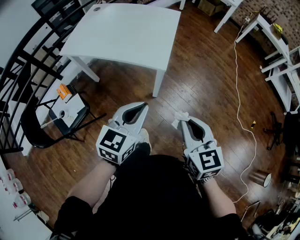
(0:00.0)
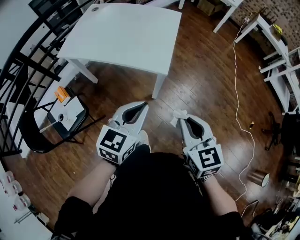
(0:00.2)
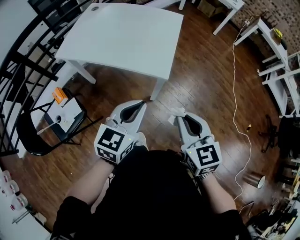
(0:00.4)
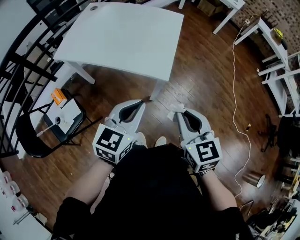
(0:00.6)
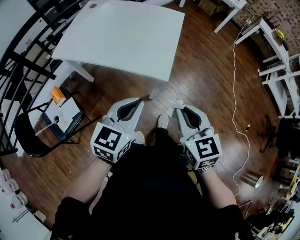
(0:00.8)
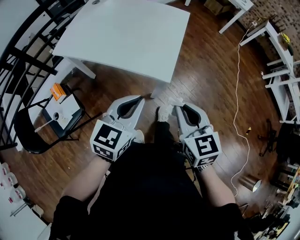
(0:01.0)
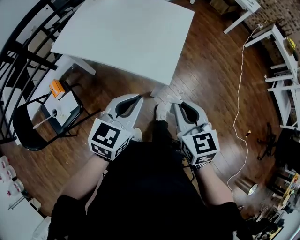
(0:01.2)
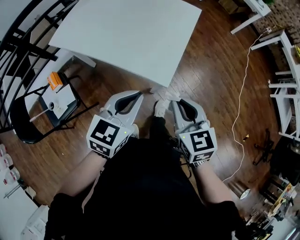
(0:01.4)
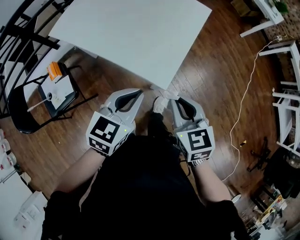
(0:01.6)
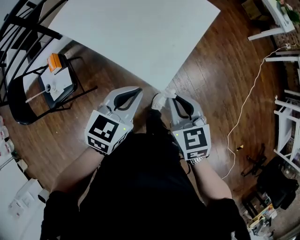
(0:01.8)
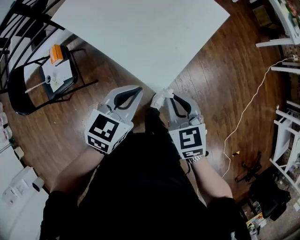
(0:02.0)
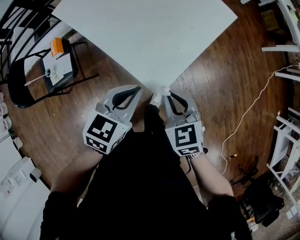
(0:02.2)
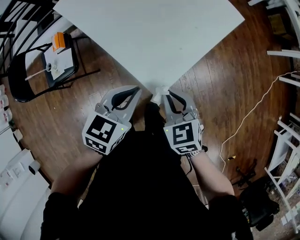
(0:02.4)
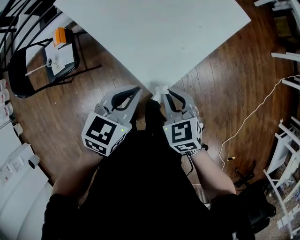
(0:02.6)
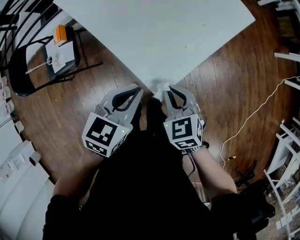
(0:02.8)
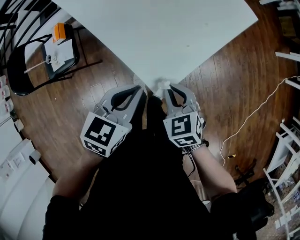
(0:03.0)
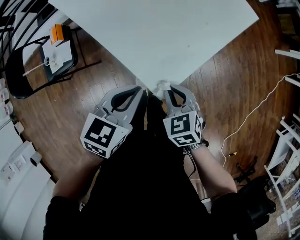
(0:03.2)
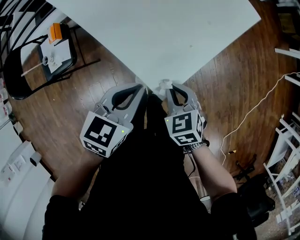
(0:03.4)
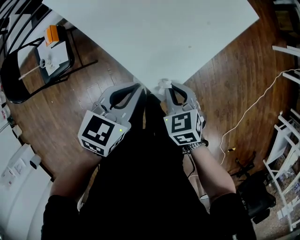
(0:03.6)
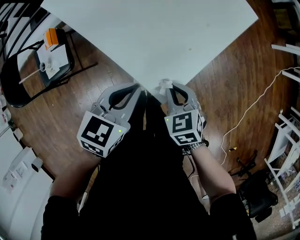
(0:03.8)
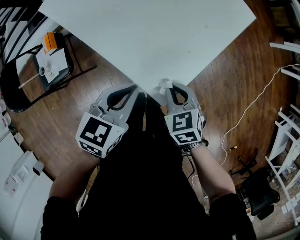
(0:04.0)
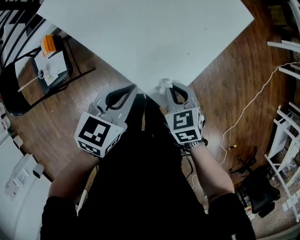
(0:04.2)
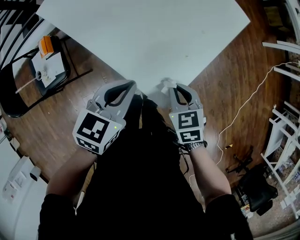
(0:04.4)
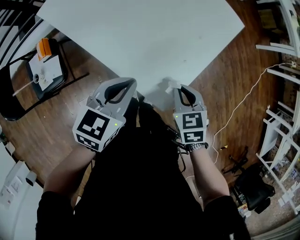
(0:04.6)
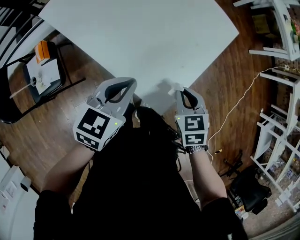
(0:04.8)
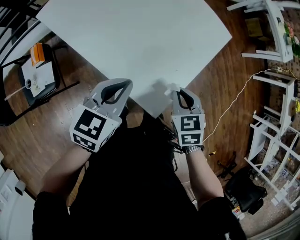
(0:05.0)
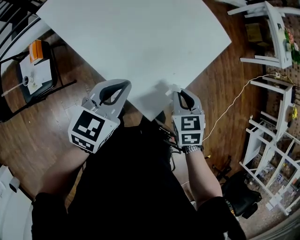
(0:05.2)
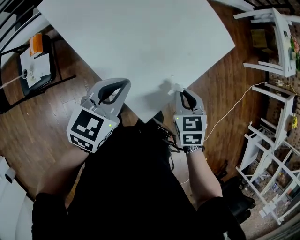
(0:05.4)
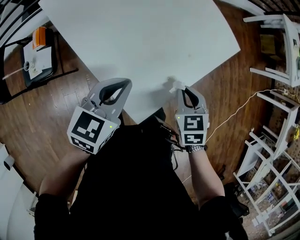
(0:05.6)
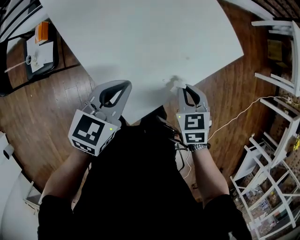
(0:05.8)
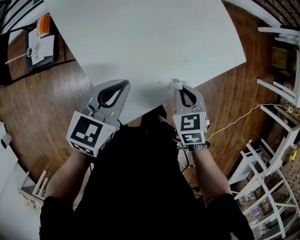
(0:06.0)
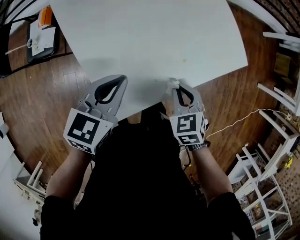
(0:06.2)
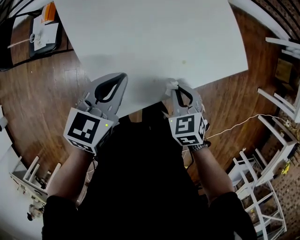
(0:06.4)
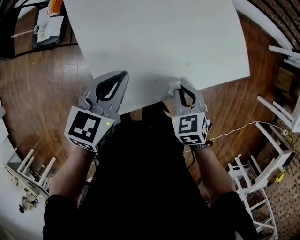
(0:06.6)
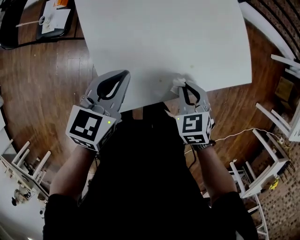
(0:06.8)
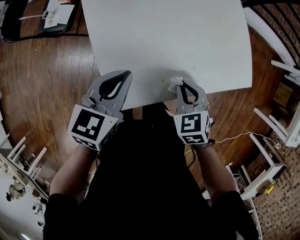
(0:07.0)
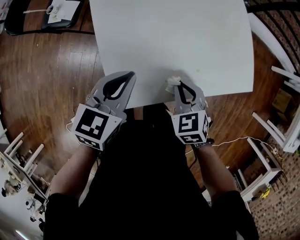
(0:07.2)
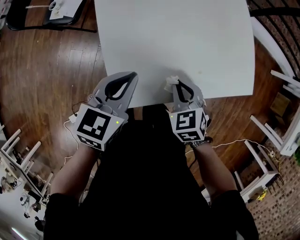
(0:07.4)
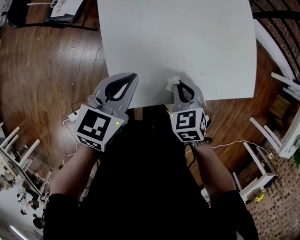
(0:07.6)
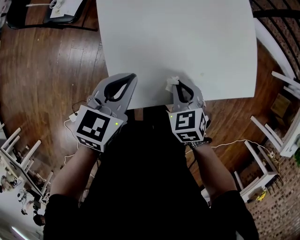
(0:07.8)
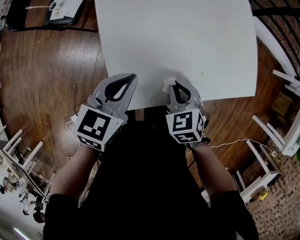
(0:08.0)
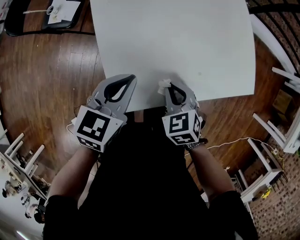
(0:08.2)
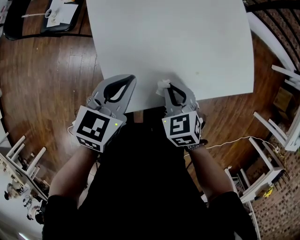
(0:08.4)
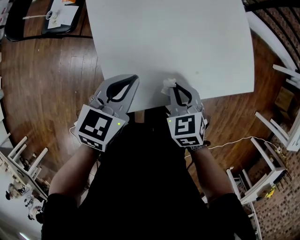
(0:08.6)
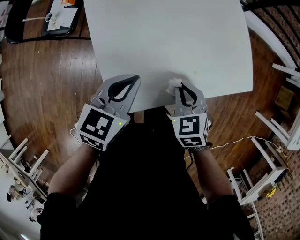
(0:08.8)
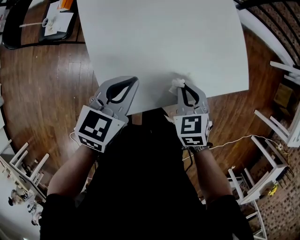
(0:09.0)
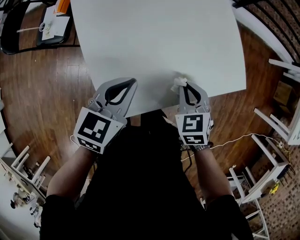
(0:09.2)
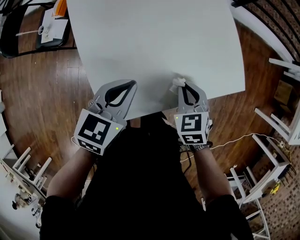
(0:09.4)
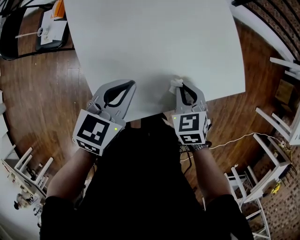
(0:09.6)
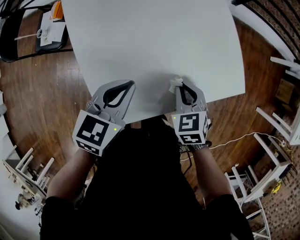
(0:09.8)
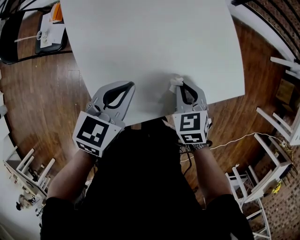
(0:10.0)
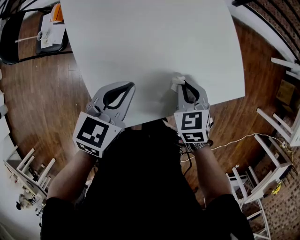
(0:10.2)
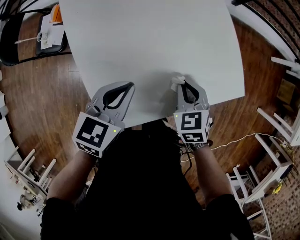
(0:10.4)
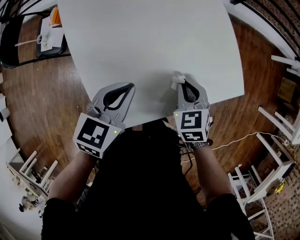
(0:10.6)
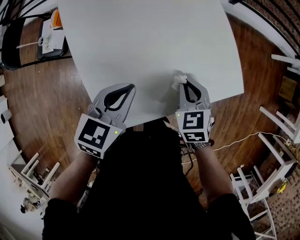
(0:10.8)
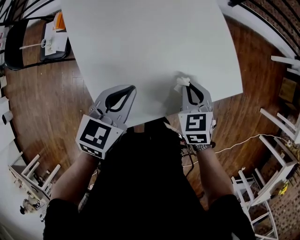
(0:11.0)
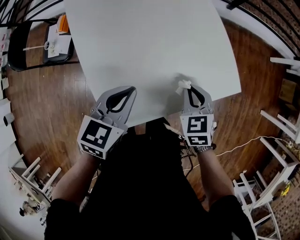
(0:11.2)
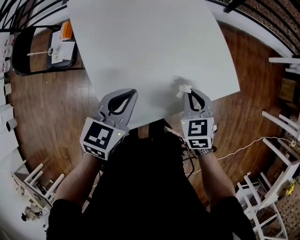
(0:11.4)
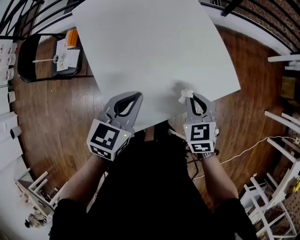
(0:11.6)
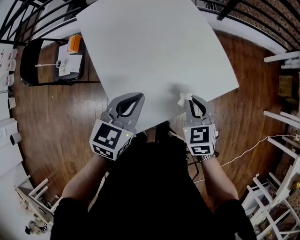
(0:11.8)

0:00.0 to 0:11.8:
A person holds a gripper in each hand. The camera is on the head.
0:00.0 to 0:01.4: The two grippers go roughly 20 cm forward.
0:01.4 to 0:03.0: The left gripper moves downward, roughly 10 cm, and swivels approximately 30 degrees; the right gripper moves downward, roughly 15 cm, and turns by approximately 40 degrees.
0:03.0 to 0:04.4: The left gripper shifts some 5 cm forward.
0:04.4 to 0:06.0: The left gripper is displaced forward and to the right by some 10 cm. The right gripper travels forward and to the right by approximately 15 cm, and swivels approximately 20 degrees.
0:06.0 to 0:07.4: The left gripper turns by some 20 degrees. Meanwhile the right gripper ends up approximately 5 cm from where it was, and turns by about 30 degrees.
0:07.4 to 0:08.8: The grippers stay close to where they were, moving slightly.
0:08.8 to 0:10.4: The left gripper shifts roughly 5 cm forward, while the right gripper goes roughly 10 cm forward and to the right.
0:10.4 to 0:11.8: The right gripper is displaced upward and backward by some 10 cm. Meanwhile the left gripper moves upward, approximately 10 cm.

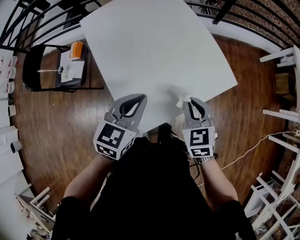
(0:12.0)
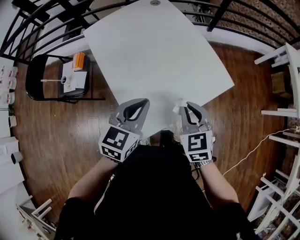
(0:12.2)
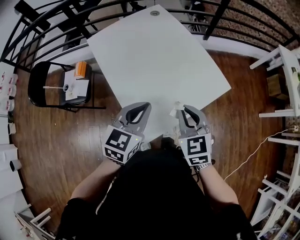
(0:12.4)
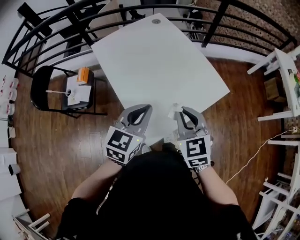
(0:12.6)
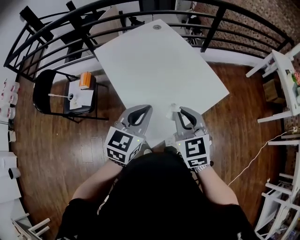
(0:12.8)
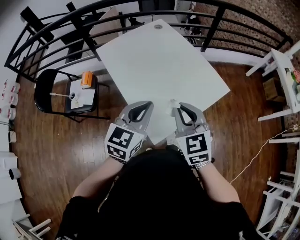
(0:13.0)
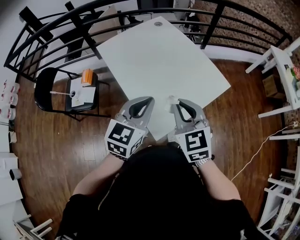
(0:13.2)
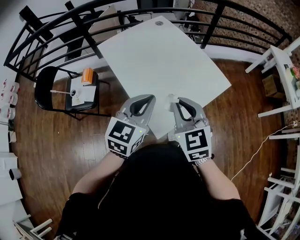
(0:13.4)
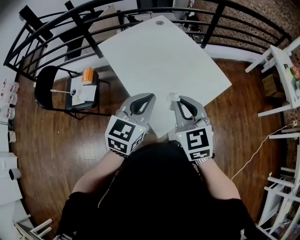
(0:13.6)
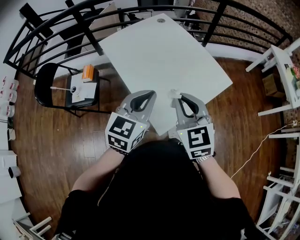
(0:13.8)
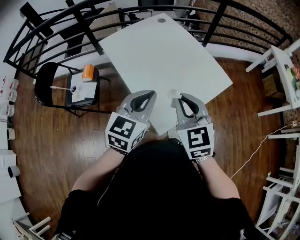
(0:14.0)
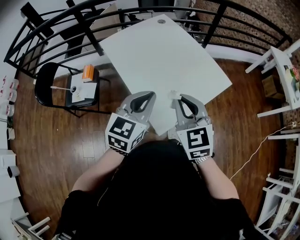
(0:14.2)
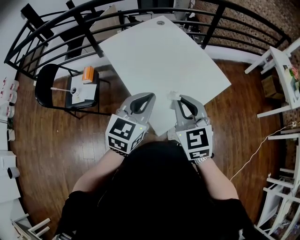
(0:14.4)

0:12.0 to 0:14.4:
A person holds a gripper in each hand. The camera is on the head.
0:12.0 to 0:13.2: The right gripper is displaced upward, to the left and backward by roughly 20 cm, while the left gripper travels upward, backward and to the left by roughly 15 cm.
0:13.2 to 0:14.4: The grippers move only a little.

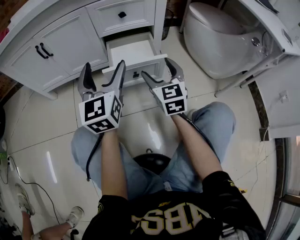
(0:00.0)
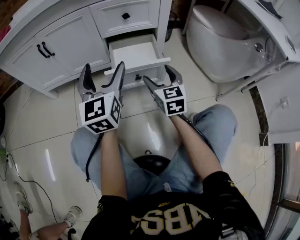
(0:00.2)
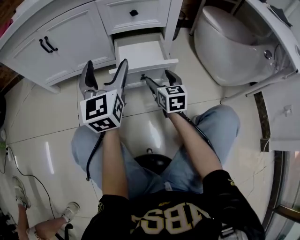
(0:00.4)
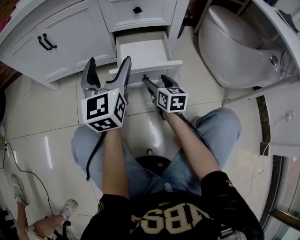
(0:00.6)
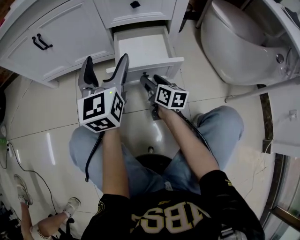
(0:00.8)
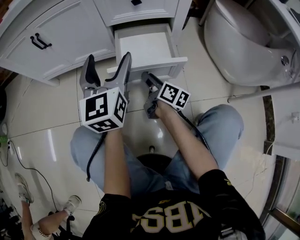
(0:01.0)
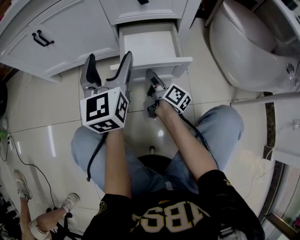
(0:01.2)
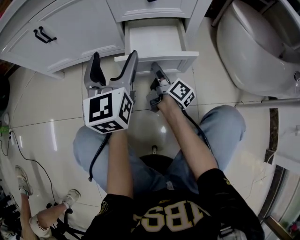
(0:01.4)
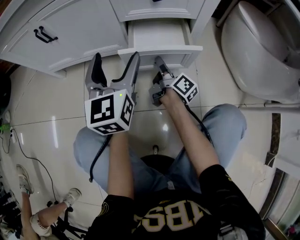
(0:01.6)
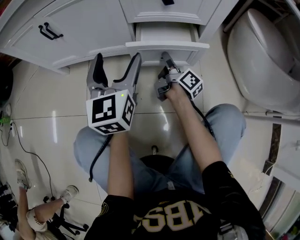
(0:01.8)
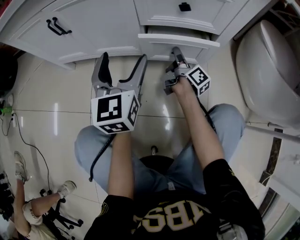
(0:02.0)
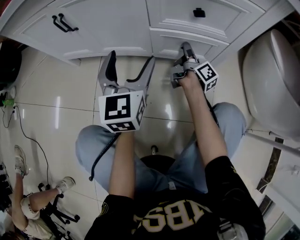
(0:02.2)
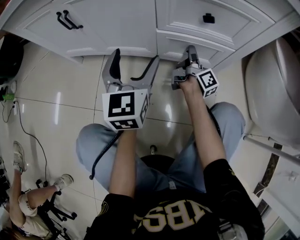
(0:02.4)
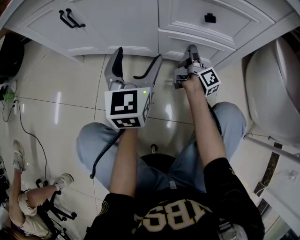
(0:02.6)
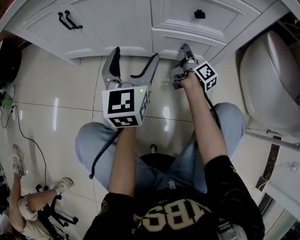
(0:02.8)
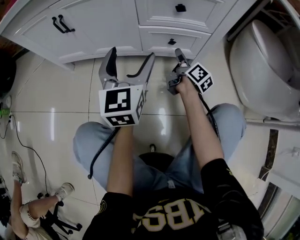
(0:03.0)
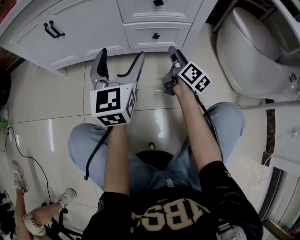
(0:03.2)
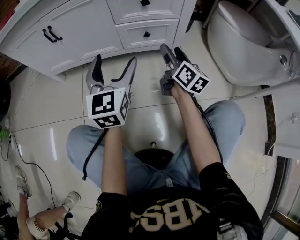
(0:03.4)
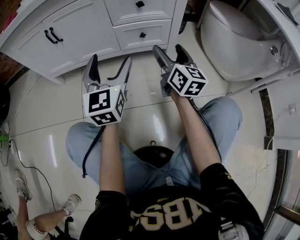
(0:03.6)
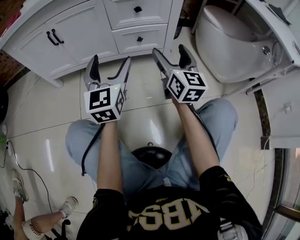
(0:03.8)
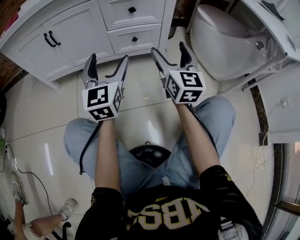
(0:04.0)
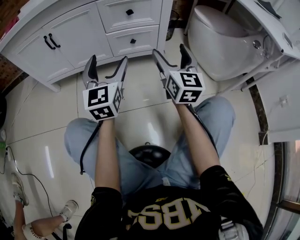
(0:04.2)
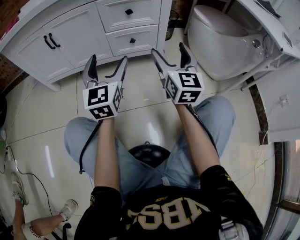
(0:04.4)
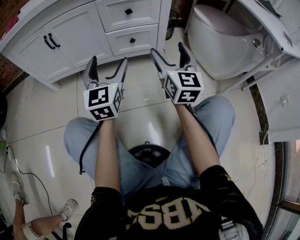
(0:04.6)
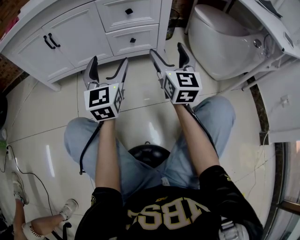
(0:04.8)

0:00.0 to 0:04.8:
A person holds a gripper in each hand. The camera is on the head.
0:00.0 to 0:01.6: The right gripper goes approximately 25 cm downward and forward, twists approximately 80 degrees clockwise, seen from behind, and closes up, while the left gripper shifts some 15 cm forward and downward.
0:01.6 to 0:03.2: The left gripper moves some 5 cm forward and comes back. Meanwhile the right gripper shifts roughly 10 cm upward and to the right, moves some 15 cm forward and comes back, and changes its angle by about 20 degrees.
0:03.2 to 0:04.8: The left gripper travels backward by roughly 10 cm. The right gripper travels backward and upward by some 25 cm, twists some 50 degrees counterclockwise, seen from behind, and opens up.

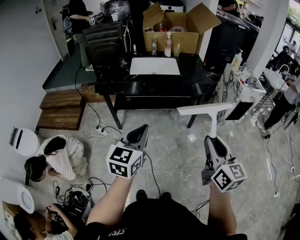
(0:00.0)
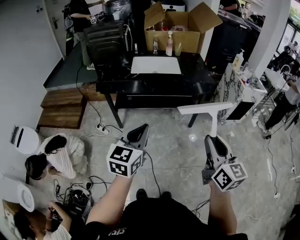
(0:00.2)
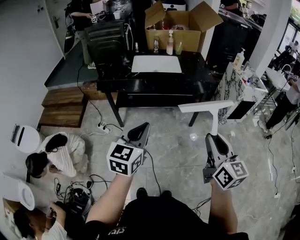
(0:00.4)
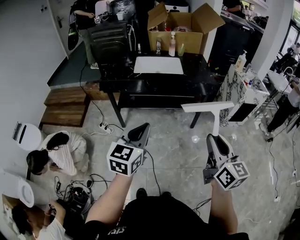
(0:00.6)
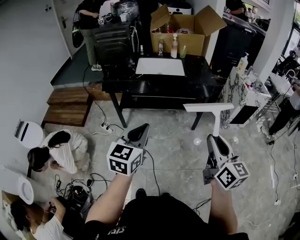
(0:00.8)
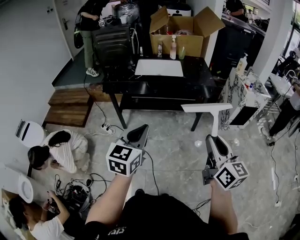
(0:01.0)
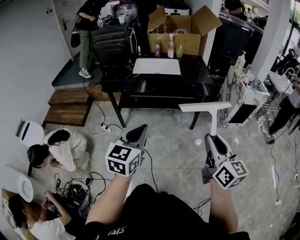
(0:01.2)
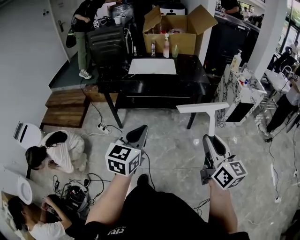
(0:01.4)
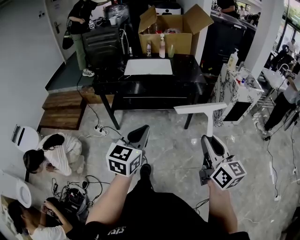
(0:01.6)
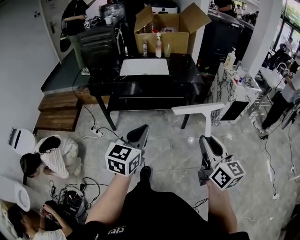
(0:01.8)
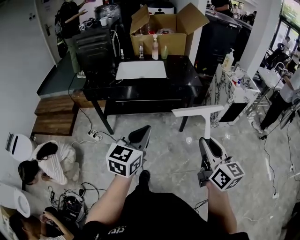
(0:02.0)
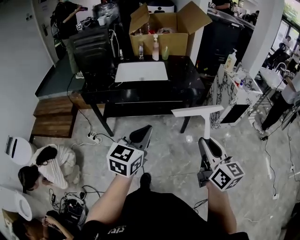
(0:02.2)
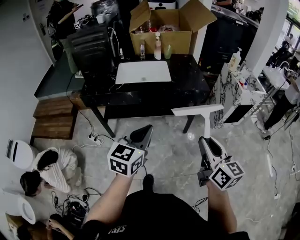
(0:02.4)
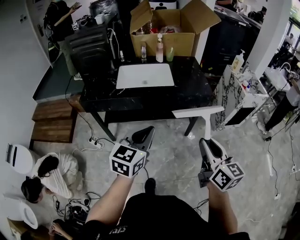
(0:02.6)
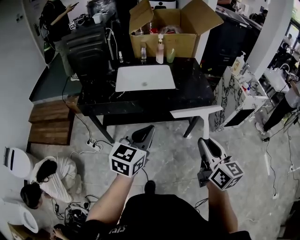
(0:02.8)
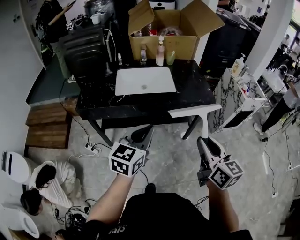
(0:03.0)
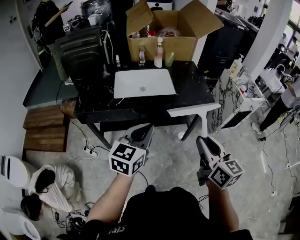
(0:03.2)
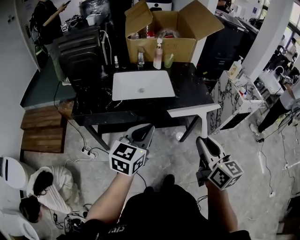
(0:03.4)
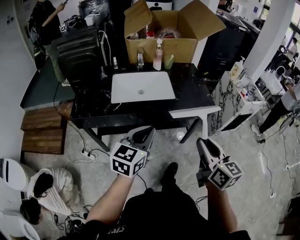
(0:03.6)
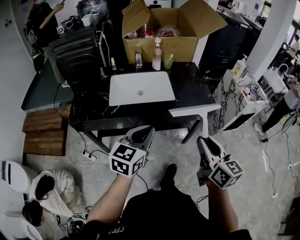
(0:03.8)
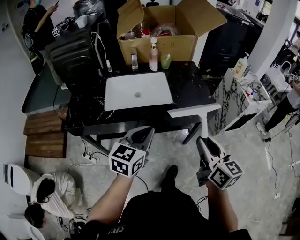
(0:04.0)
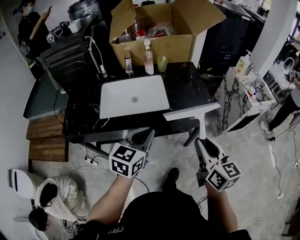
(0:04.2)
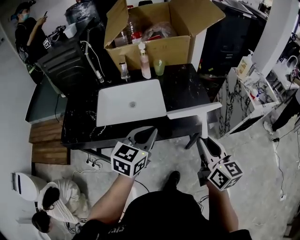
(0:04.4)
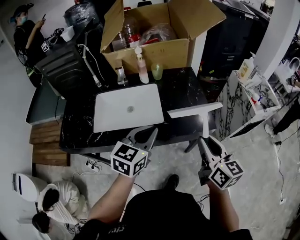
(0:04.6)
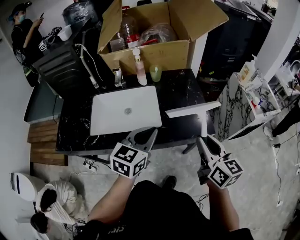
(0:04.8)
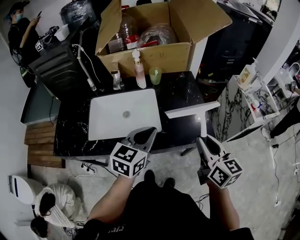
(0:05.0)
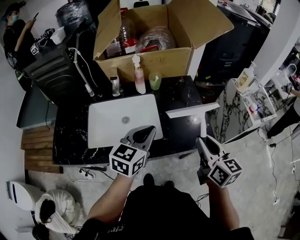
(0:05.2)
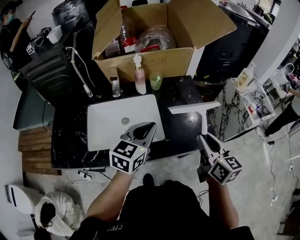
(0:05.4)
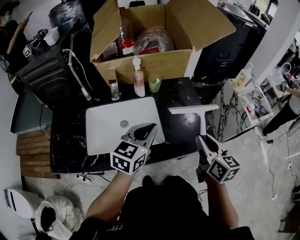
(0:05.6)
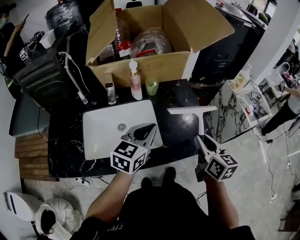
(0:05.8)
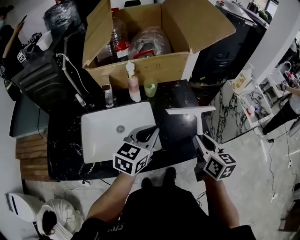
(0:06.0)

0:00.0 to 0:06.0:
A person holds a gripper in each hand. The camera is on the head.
0:00.0 to 0:01.6: The two grippers go approximately 10 cm to the right.
0:01.6 to 0:03.0: The left gripper shifts approximately 30 cm forward, while the right gripper moves forward and to the left, some 30 cm.
0:03.0 to 0:04.4: Both grippers travel together forward, roughly 25 cm.
0:04.4 to 0:06.0: The grippers both shift forward by about 20 cm.
